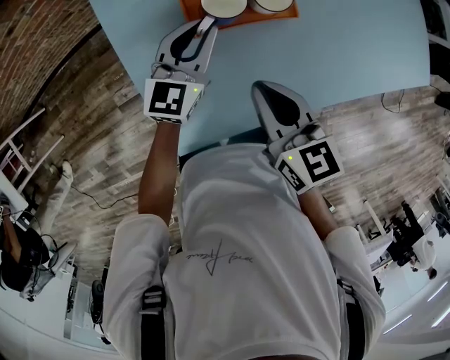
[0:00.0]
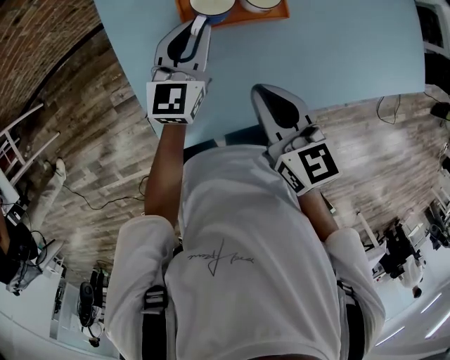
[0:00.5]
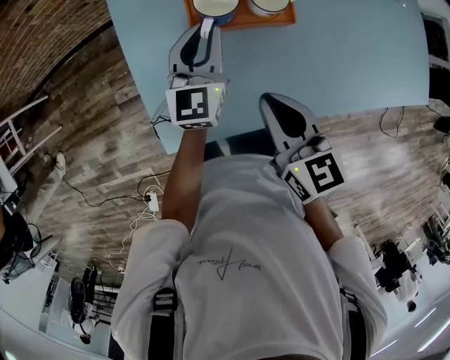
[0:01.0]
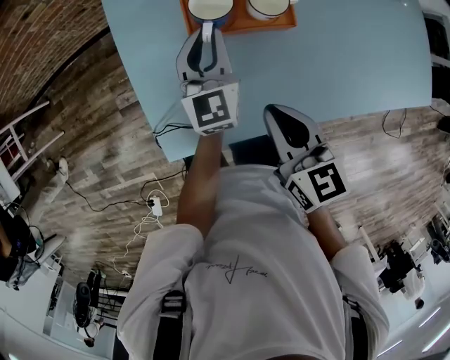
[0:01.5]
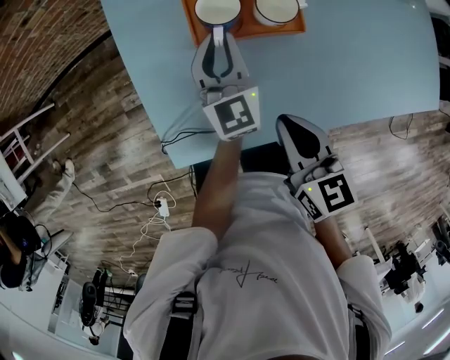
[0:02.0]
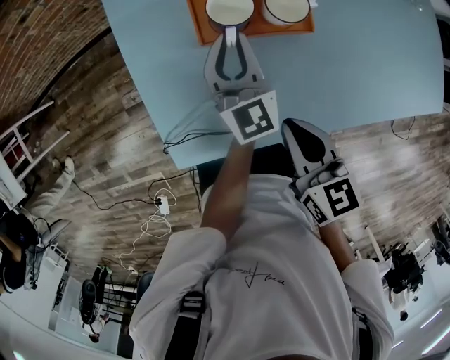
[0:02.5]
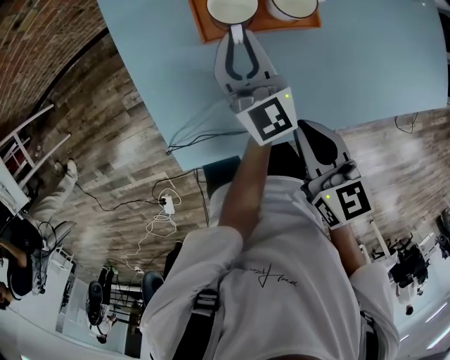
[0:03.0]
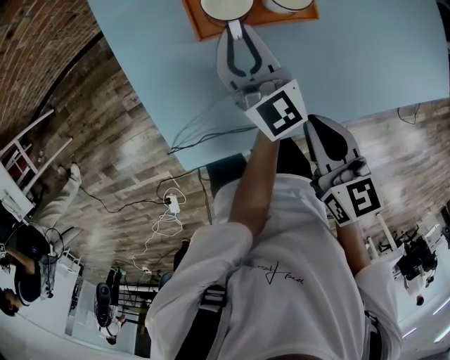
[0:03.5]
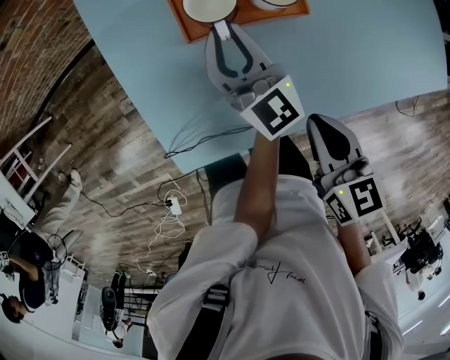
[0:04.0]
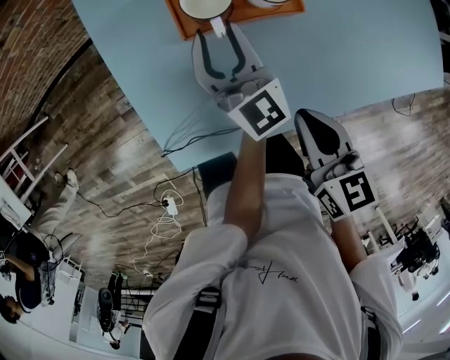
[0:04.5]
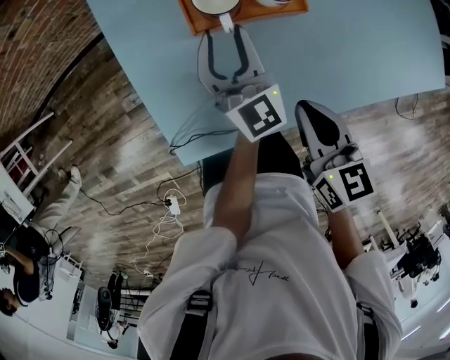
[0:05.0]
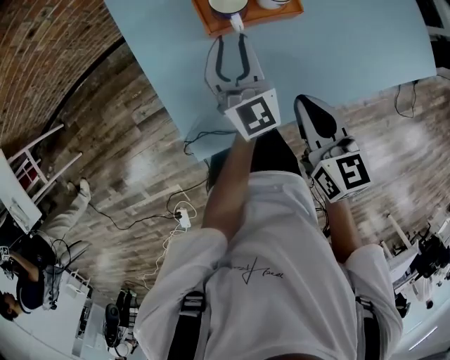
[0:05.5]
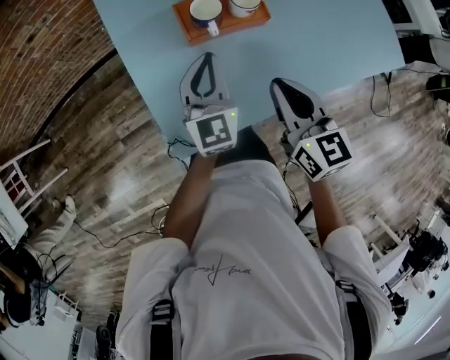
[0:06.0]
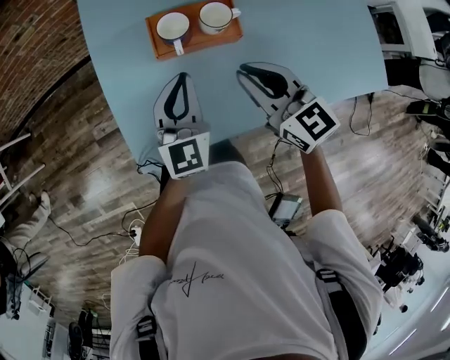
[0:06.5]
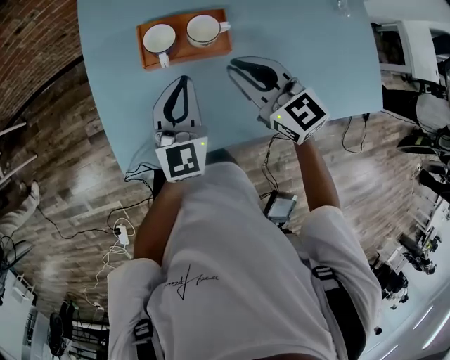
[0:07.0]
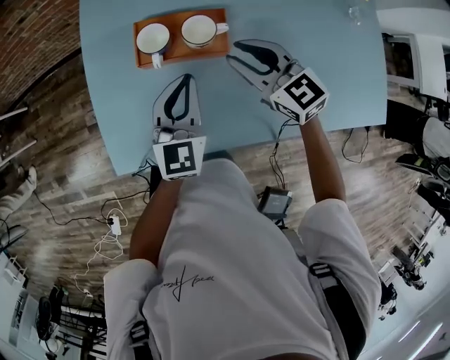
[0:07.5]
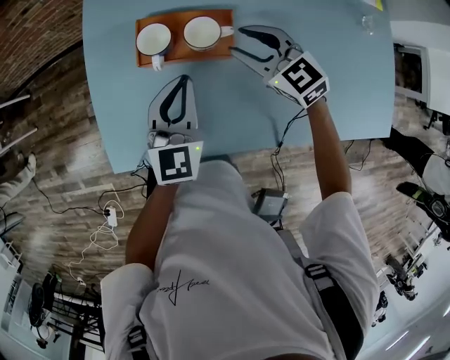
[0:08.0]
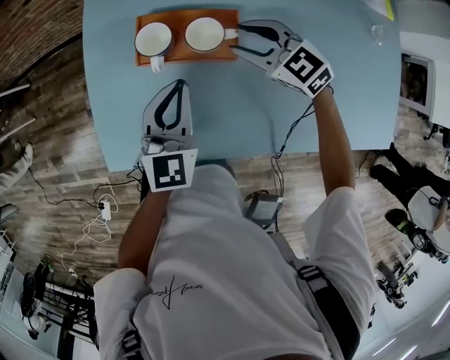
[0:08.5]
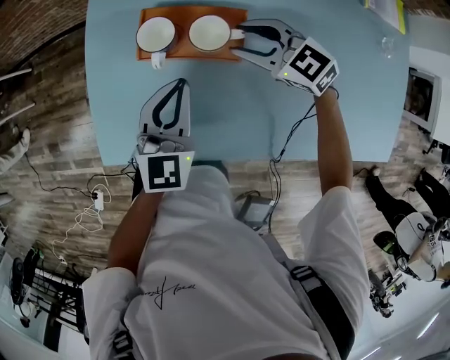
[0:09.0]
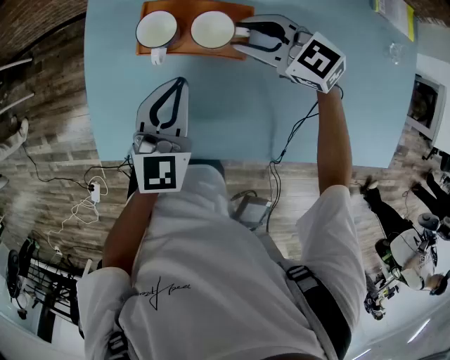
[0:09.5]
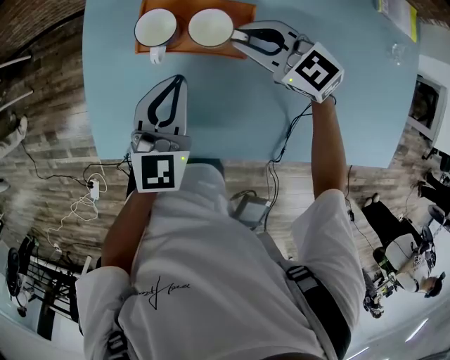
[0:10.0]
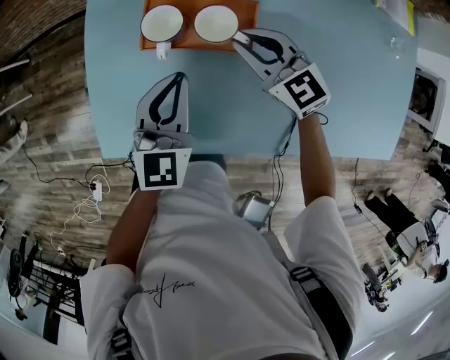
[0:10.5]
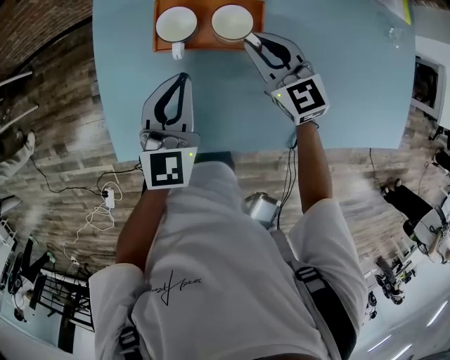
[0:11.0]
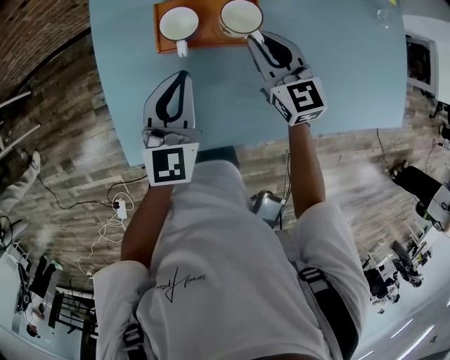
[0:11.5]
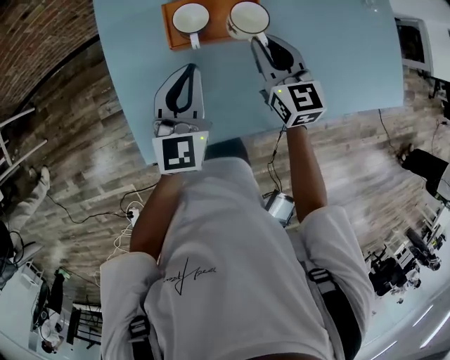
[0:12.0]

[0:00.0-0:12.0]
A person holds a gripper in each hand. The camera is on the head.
0:00.0 to 0:02.0: The left gripper rotates roughly 40 degrees, while the right gripper moves roughly 5 cm.
0:02.0 to 0:04.0: The grippers move only a little.
0:04.0 to 0:06.0: The right gripper travels upward by some 10 cm; the left gripper heads backward and upward, covering roughly 10 cm, swivels roughly 30 degrees, and opens, then closes again.
0:06.0 to 0:08.0: The right gripper shifts by roughly 25 cm, rotates about 50 degrees, and opens; the left gripper changes place by about 10 cm.
0:10.0 to 0:12.0: The right gripper moves approximately 5 cm, and swivels about 60 degrees. Meanwhile the left gripper moves approximately 5 cm.

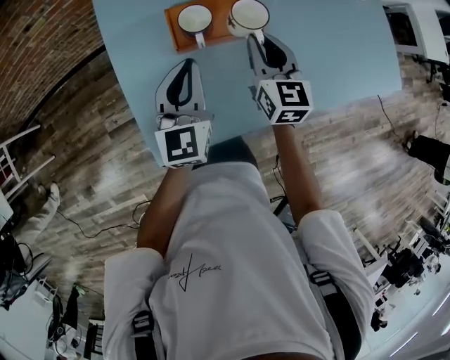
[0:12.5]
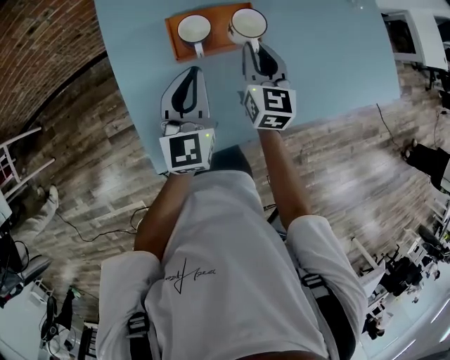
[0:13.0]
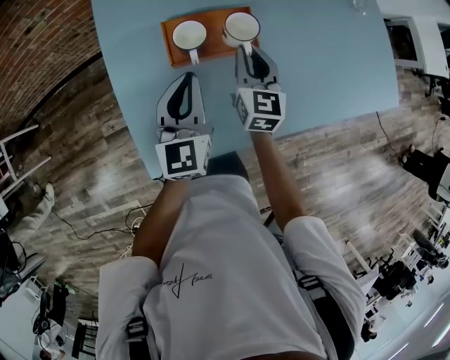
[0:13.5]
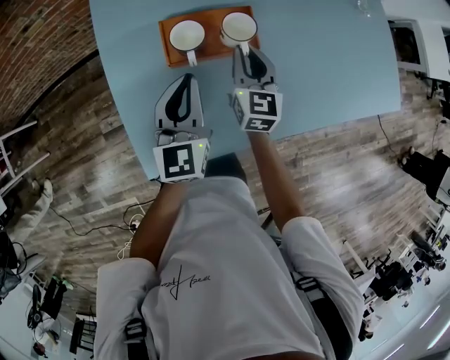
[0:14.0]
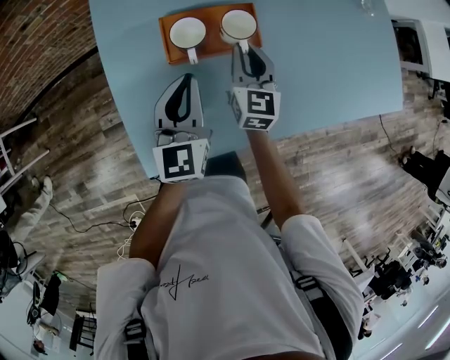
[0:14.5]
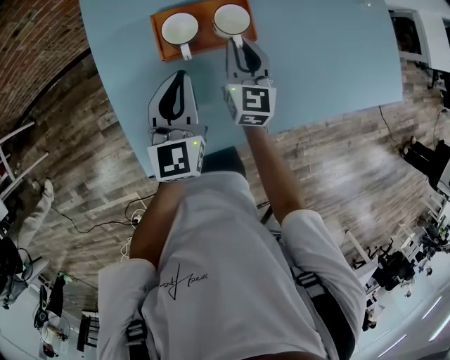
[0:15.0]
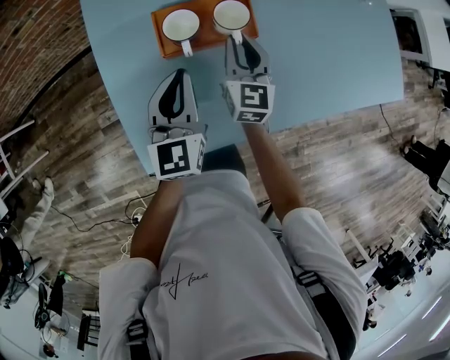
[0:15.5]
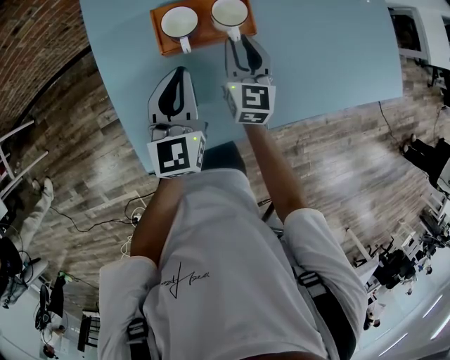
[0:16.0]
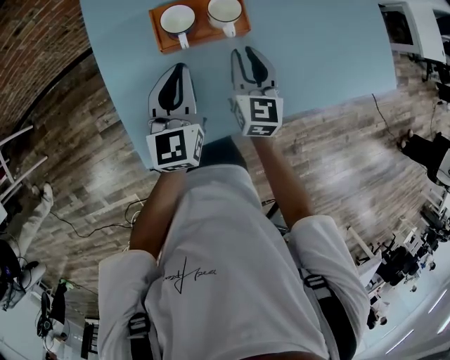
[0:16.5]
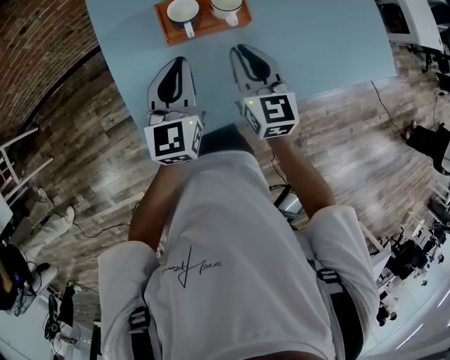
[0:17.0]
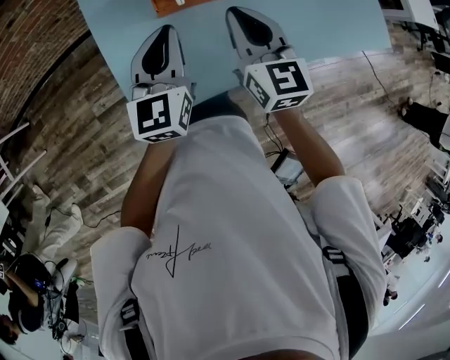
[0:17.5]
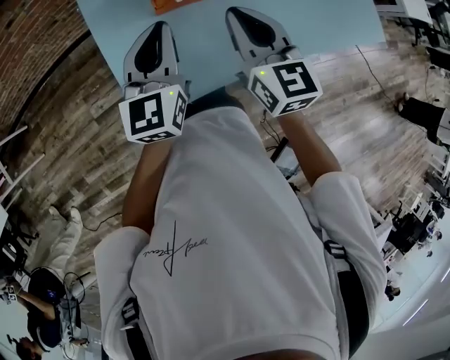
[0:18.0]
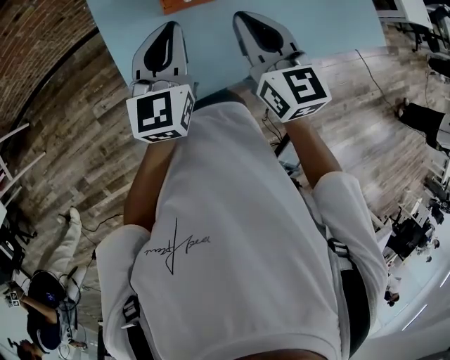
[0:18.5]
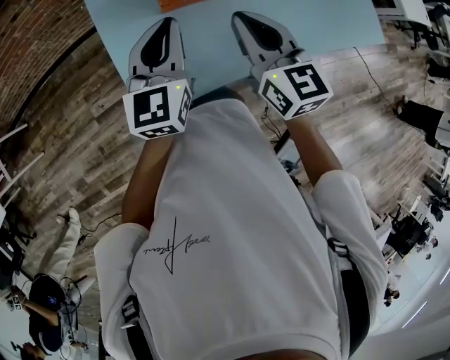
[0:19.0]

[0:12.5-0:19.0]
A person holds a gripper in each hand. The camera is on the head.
0:12.5 to 0:14.5: The right gripper heads downward, covering roughly 5 cm.
0:14.5 to 0:17.0: The right gripper is displaced backward and upward by approximately 10 cm.
0:17.0 to 0:19.0: The right gripper heads upward and backward, covering some 10 cm. The left gripper travels upward by about 5 cm.

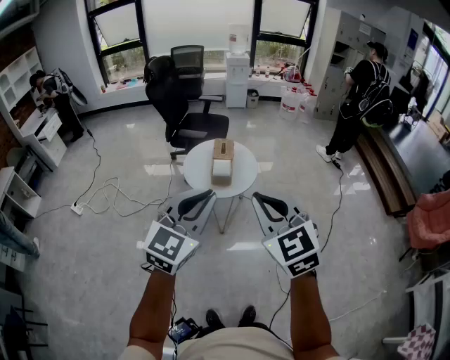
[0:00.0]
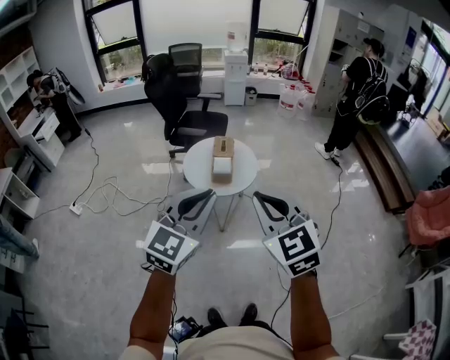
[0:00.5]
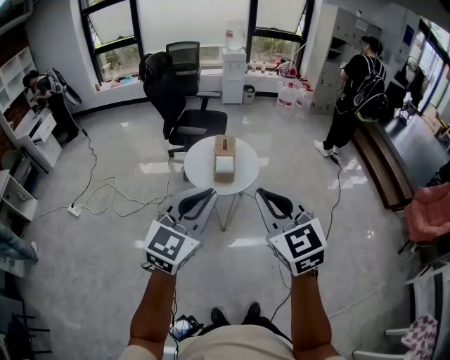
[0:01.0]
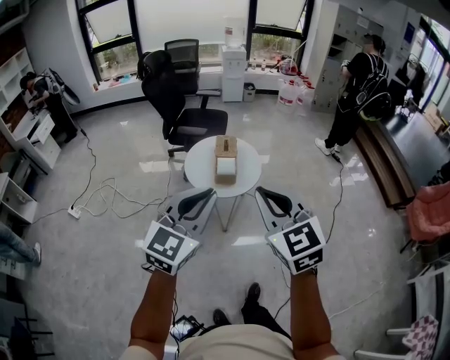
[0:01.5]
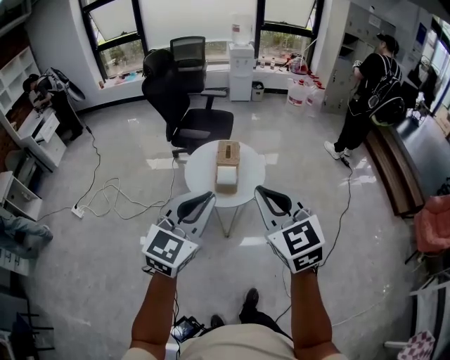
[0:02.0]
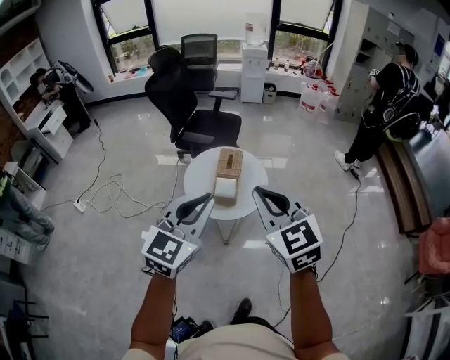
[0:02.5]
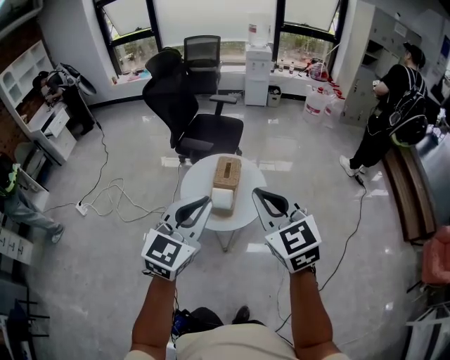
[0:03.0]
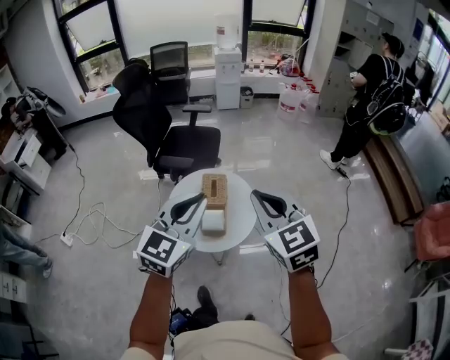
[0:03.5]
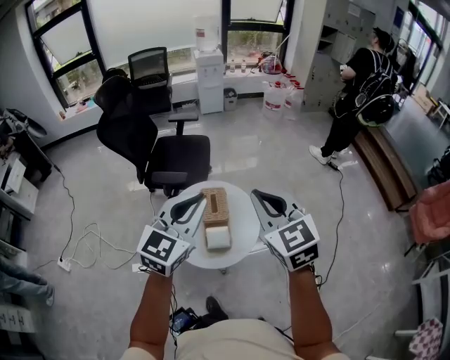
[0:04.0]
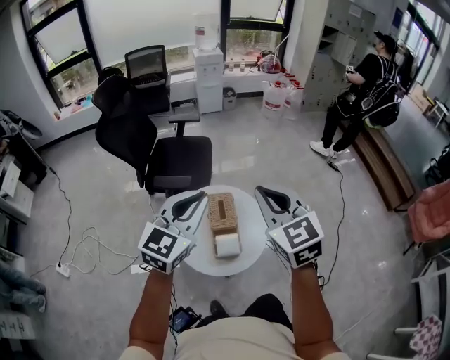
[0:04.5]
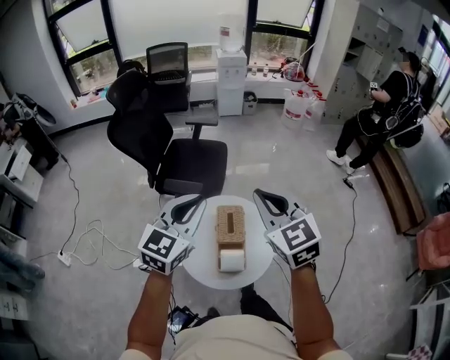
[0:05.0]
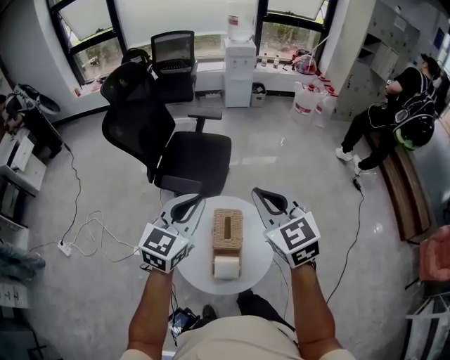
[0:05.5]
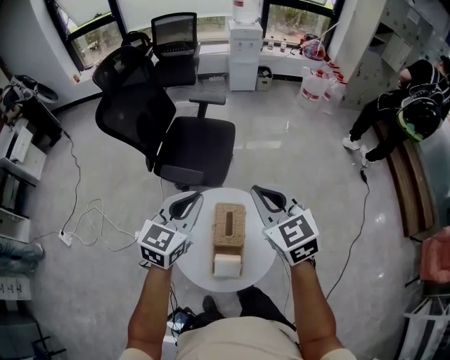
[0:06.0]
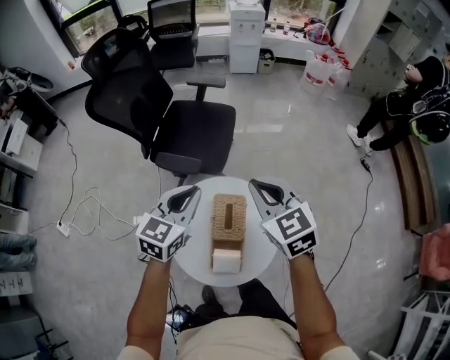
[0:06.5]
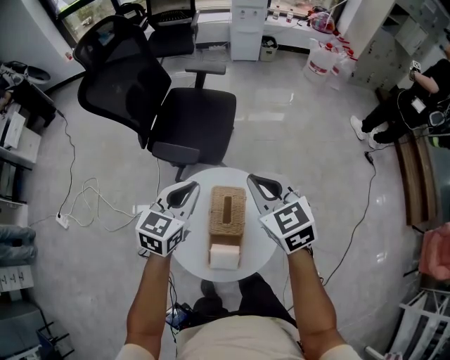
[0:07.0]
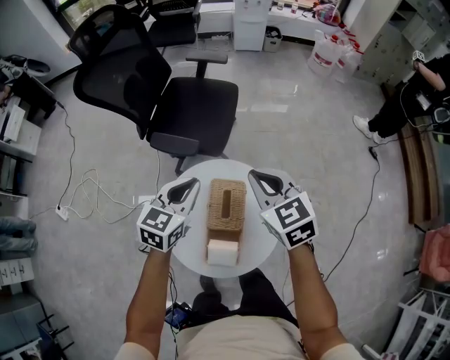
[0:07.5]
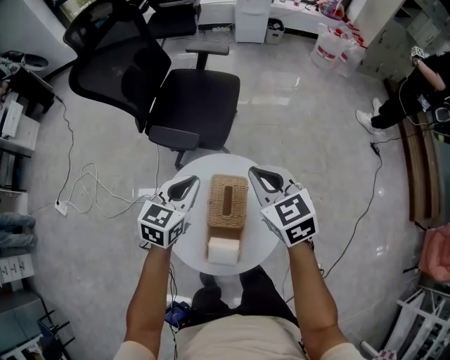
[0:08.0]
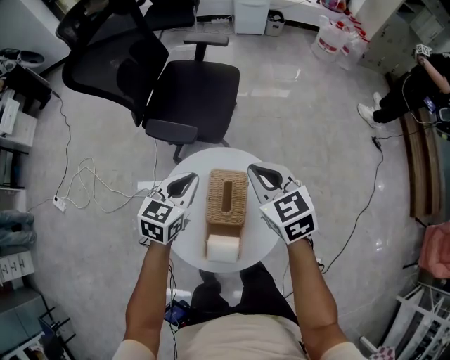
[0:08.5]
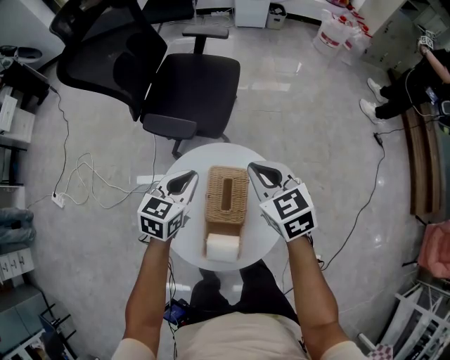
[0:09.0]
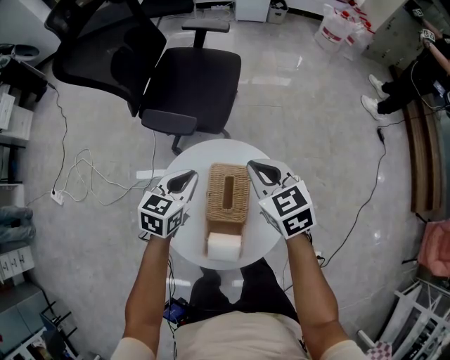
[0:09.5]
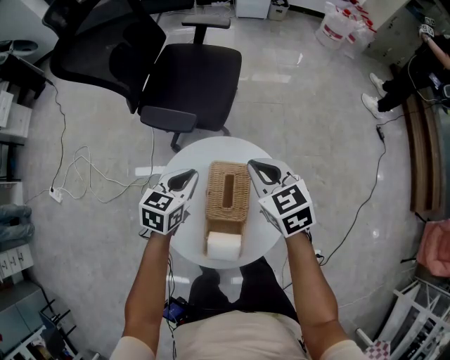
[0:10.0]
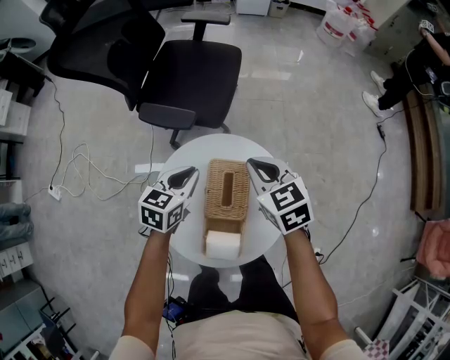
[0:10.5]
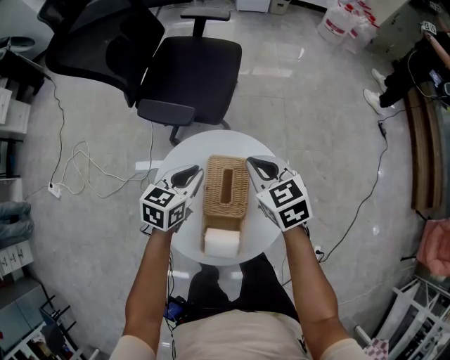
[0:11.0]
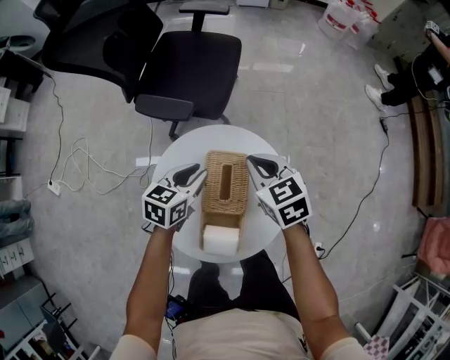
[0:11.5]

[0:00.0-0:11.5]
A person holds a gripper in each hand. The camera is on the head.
0:00.0 to 0:02.0: The grippers both shift forward by some 15 cm.
0:02.0 to 0:04.0: The two grippers go approximately 35 cm forward.
0:04.0 to 0:06.0: Both grippers move forward and downward, about 25 cm.
0:06.0 to 0:07.5: Both grippers move downward, about 15 cm.
0:07.5 to 0:09.5: The two grippers go roughly 10 cm downward.
0:09.5 to 0:11.5: The two grippers go about 5 cm downward.
